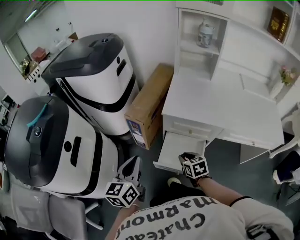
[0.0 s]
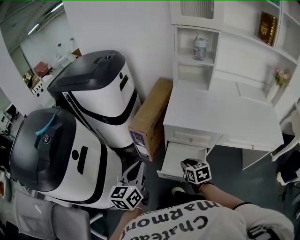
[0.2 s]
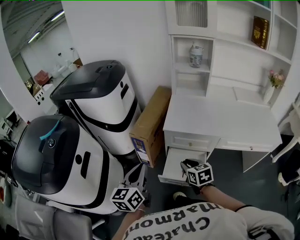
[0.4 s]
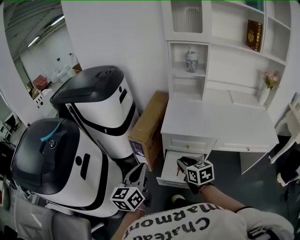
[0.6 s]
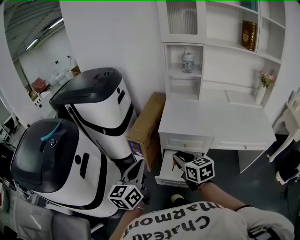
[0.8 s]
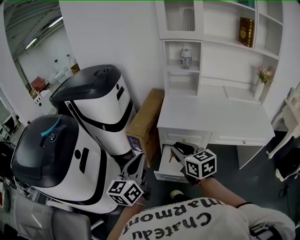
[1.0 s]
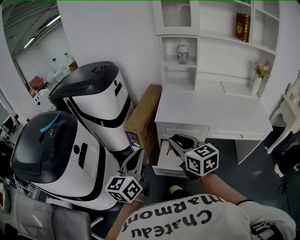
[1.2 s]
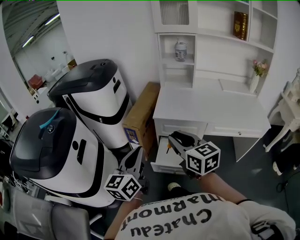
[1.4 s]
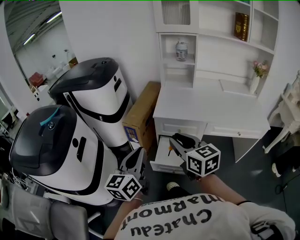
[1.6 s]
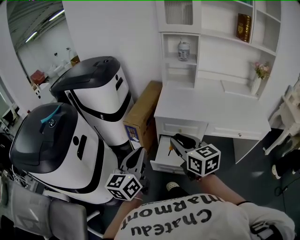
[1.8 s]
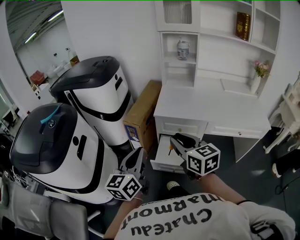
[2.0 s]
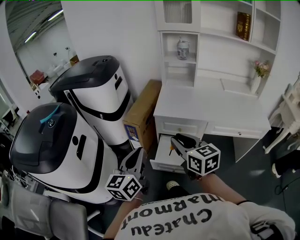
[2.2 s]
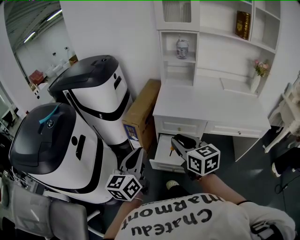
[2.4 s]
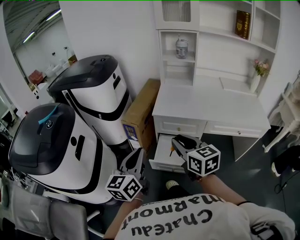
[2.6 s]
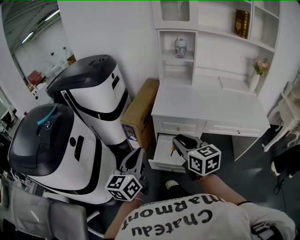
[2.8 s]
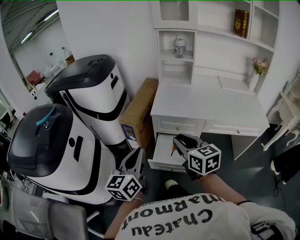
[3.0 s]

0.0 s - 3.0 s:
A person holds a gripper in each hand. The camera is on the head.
0.0 s - 1.6 s: The right gripper shifts roughly 30 cm upward and backward, and points its fingers some 40 degrees further upward. The left gripper is displaced backward and upward by approximately 15 cm.
1.6 s - 3.0 s: There are only small adjustments of the grippers.

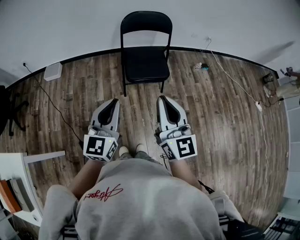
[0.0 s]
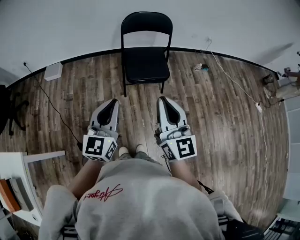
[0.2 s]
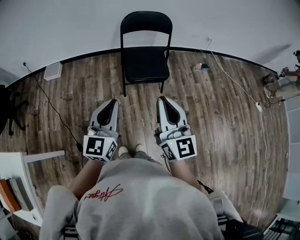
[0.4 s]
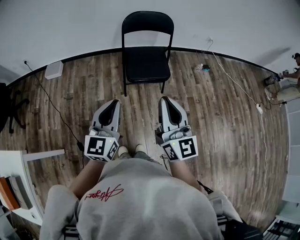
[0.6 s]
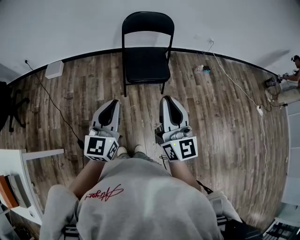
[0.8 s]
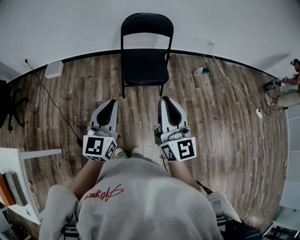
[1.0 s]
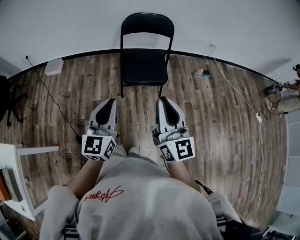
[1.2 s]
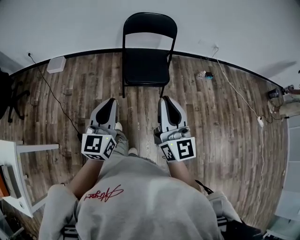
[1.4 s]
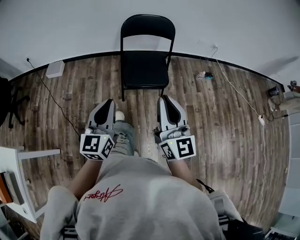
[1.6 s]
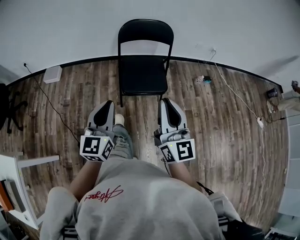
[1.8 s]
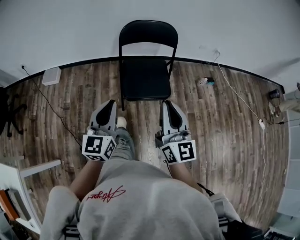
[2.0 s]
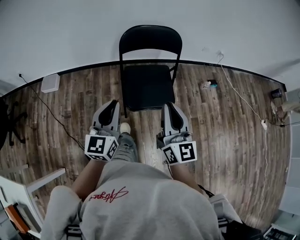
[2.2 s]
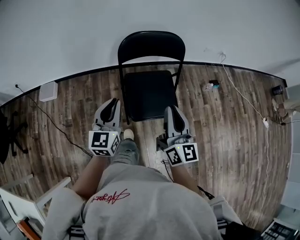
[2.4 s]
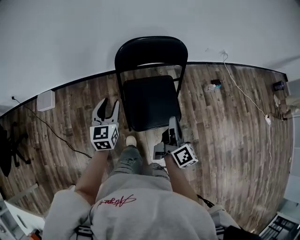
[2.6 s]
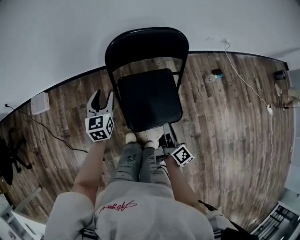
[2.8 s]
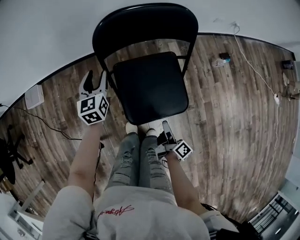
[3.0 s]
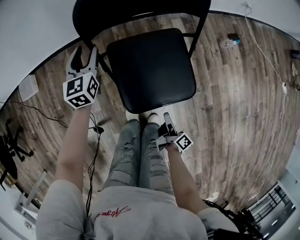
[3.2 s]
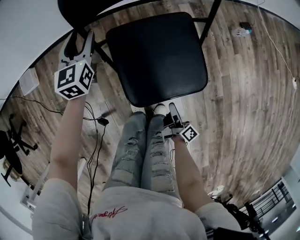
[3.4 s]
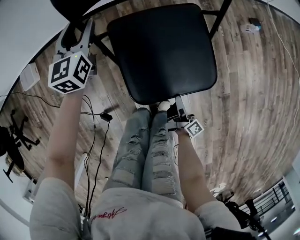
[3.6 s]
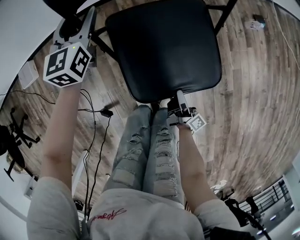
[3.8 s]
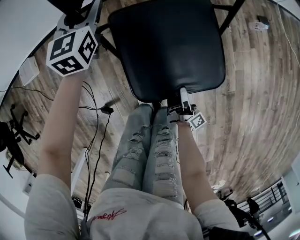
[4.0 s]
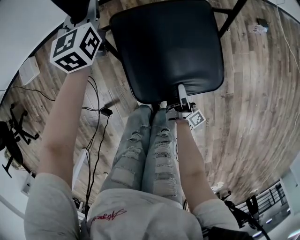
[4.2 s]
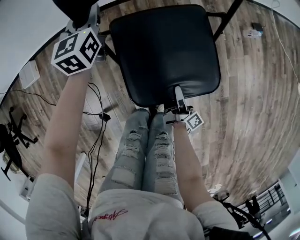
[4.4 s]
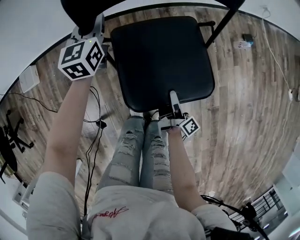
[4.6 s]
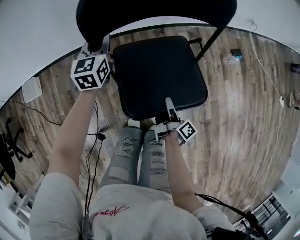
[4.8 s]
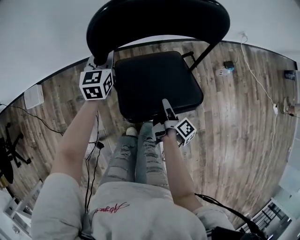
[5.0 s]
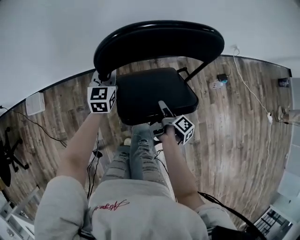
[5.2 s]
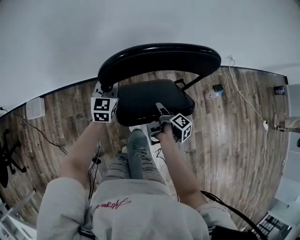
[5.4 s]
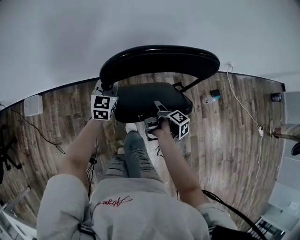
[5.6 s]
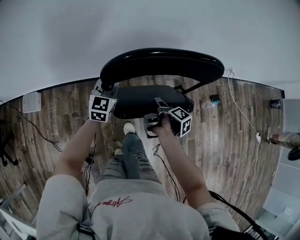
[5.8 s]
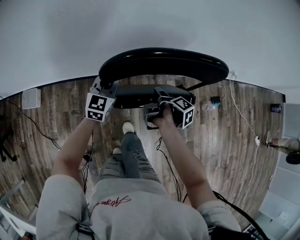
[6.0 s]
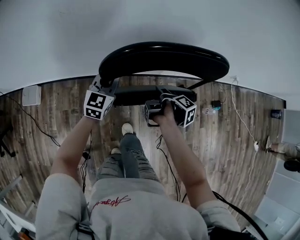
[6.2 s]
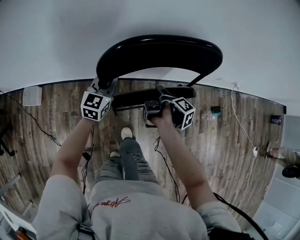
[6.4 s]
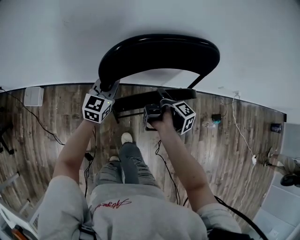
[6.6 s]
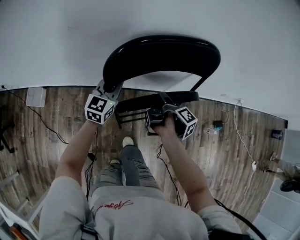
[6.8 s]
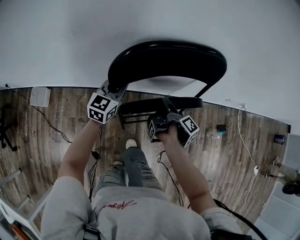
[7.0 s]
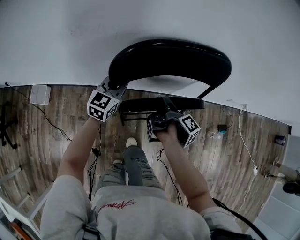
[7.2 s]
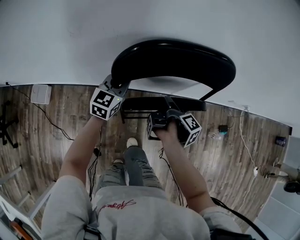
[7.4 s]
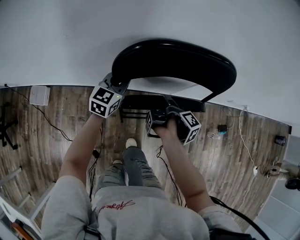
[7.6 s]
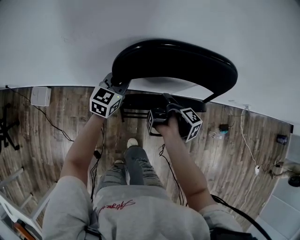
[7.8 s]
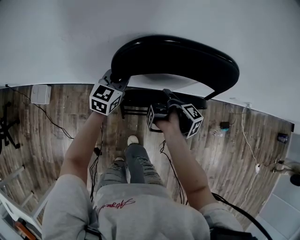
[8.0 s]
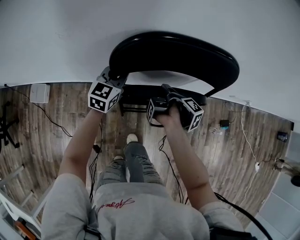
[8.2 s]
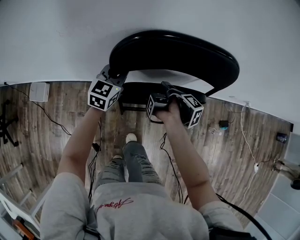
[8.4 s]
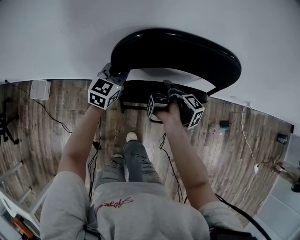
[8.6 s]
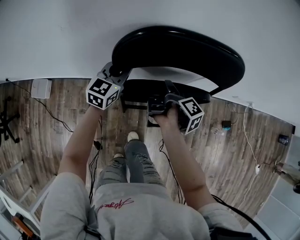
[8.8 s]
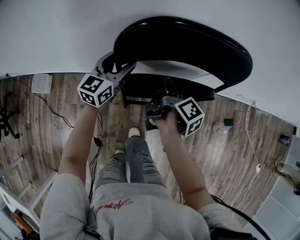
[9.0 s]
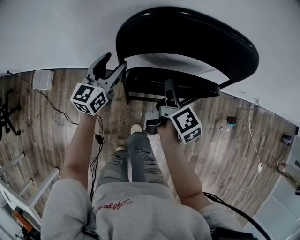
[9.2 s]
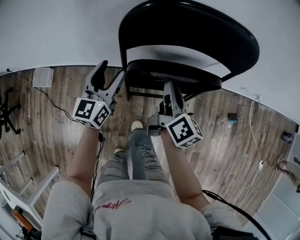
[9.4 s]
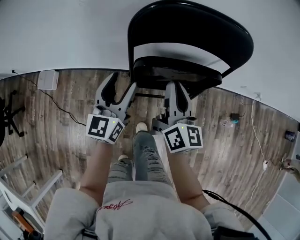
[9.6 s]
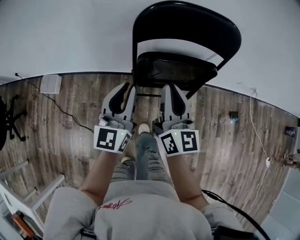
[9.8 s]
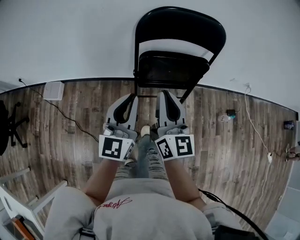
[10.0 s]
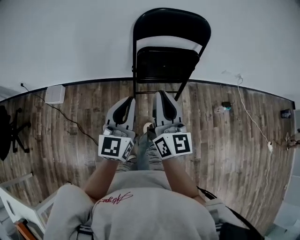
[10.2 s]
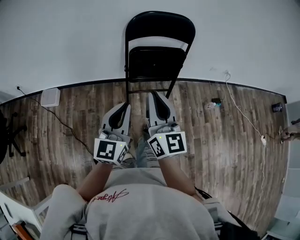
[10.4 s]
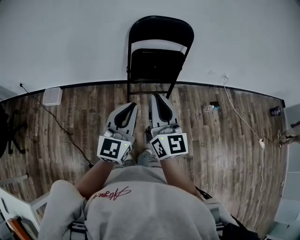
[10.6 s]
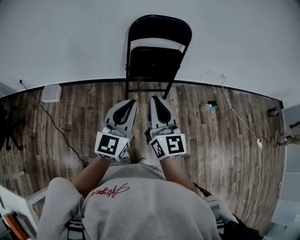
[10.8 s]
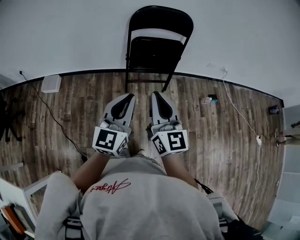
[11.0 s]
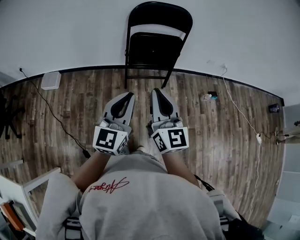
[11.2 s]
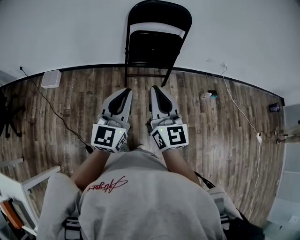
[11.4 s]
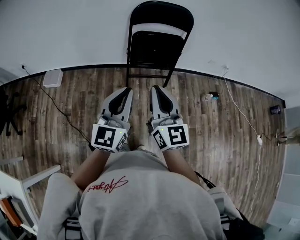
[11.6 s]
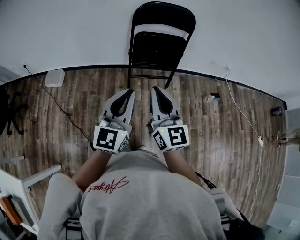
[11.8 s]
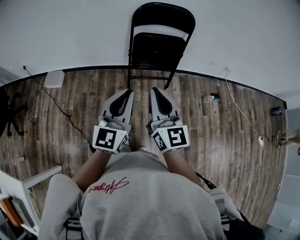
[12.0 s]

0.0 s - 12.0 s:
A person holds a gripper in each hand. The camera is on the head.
0.0 s - 1.6 s: The right gripper travels to the right and forward by some 10 cm, while the left gripper heads forward, covering approximately 5 cm.
1.6 s - 3.0 s: The right gripper is displaced downward and forward by approximately 50 cm, rolls clockwise, seen from behind, by roughly 70 degrees, and opens up; the left gripper travels forward and downward by some 60 cm, and opens.
3.0 s - 4.4 s: The left gripper heads forward and downward, covering about 15 cm, and closes up, while the right gripper heads downward, covering roughly 15 cm.
4.4 s - 6.0 s: The right gripper goes some 40 cm forward and upward, and tips its fingers downward by approximately 40 degrees. Meanwhile the left gripper goes roughly 15 cm upward and forward.
6.0 s - 7.6 s: The right gripper goes approximately 15 cm forward and to the left. Meanwhile the left gripper goes roughly 15 cm forward.
7.6 s - 9.0 s: The left gripper opens its fingers; the right gripper swivels approximately 20 degrees.
9.0 s - 10.4 s: Both grippers are carried backward, roughly 40 cm. The two grippers go some 25 cm upward. The left gripper closes its fingers, while the right gripper twists roughly 70 degrees counterclockwise, seen from behind, and closes.
10.4 s - 12.0 s: The two grippers go roughly 10 cm backward.

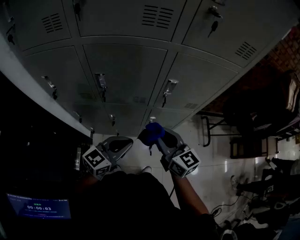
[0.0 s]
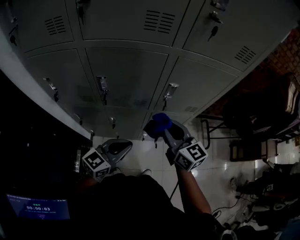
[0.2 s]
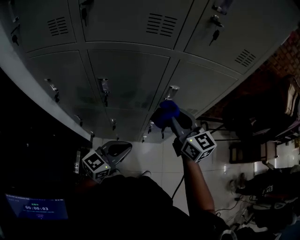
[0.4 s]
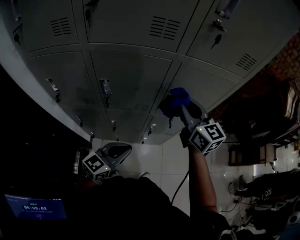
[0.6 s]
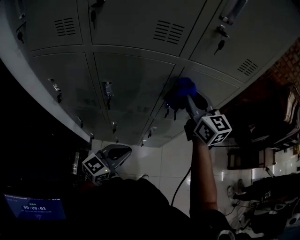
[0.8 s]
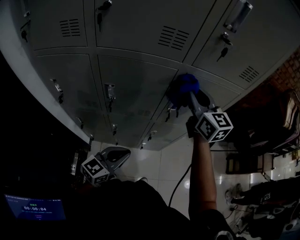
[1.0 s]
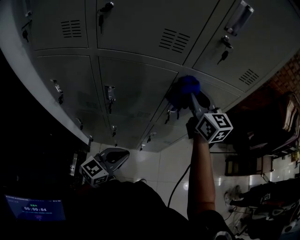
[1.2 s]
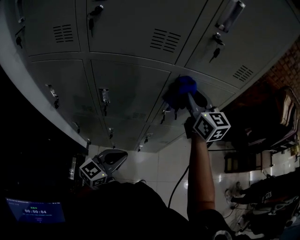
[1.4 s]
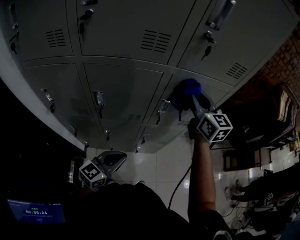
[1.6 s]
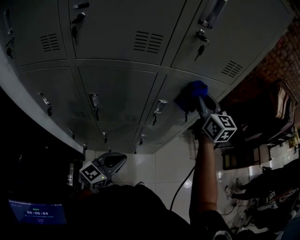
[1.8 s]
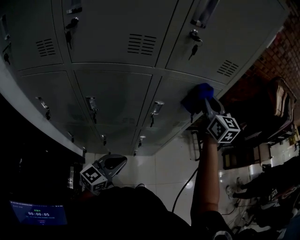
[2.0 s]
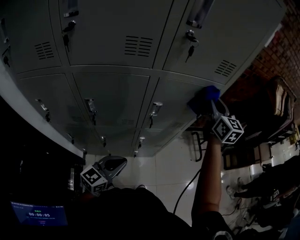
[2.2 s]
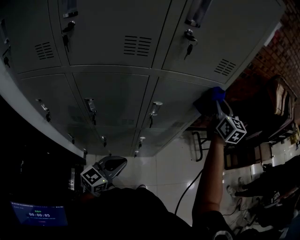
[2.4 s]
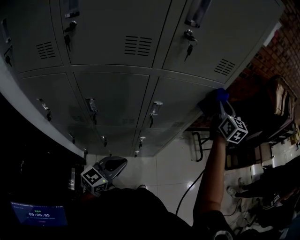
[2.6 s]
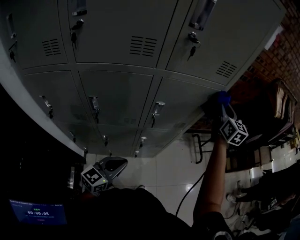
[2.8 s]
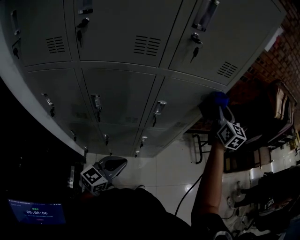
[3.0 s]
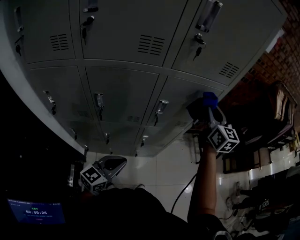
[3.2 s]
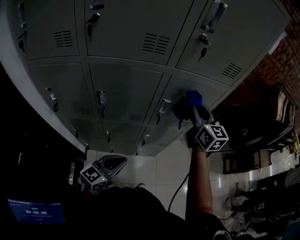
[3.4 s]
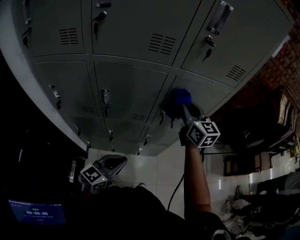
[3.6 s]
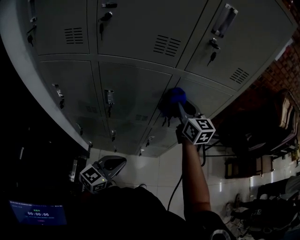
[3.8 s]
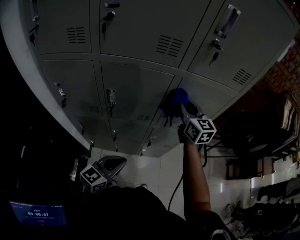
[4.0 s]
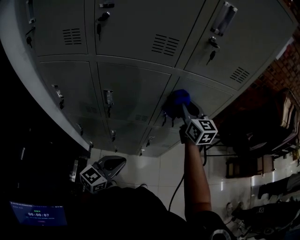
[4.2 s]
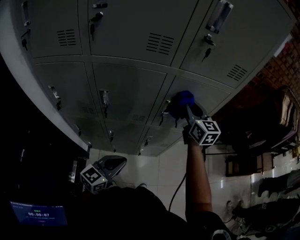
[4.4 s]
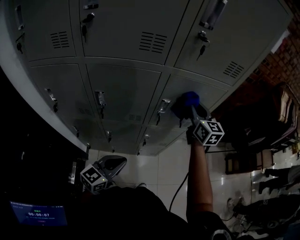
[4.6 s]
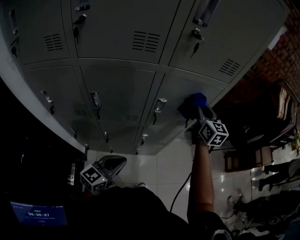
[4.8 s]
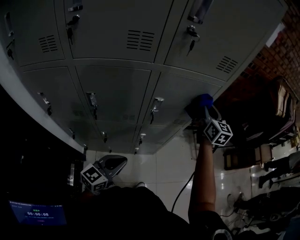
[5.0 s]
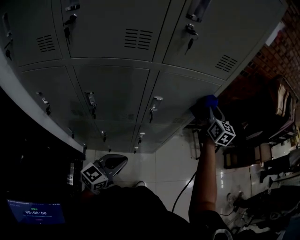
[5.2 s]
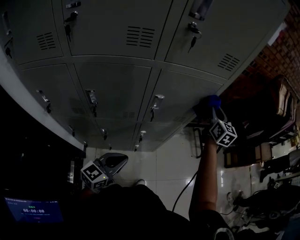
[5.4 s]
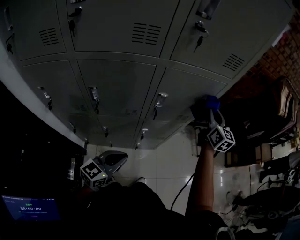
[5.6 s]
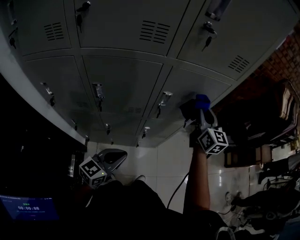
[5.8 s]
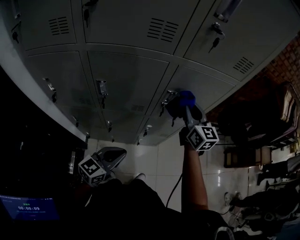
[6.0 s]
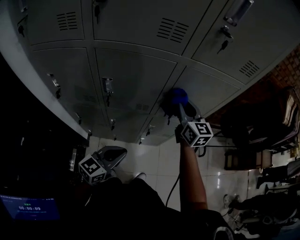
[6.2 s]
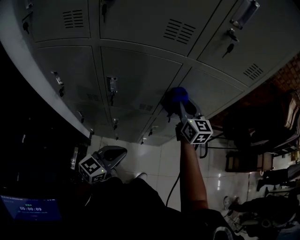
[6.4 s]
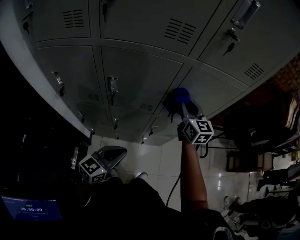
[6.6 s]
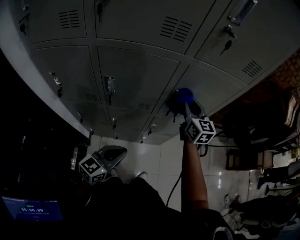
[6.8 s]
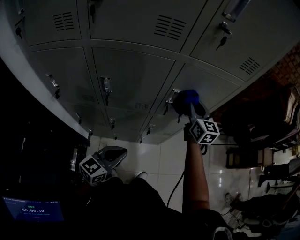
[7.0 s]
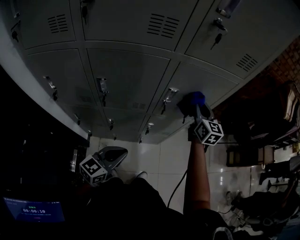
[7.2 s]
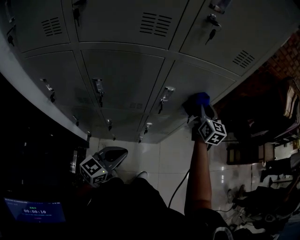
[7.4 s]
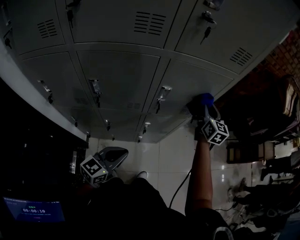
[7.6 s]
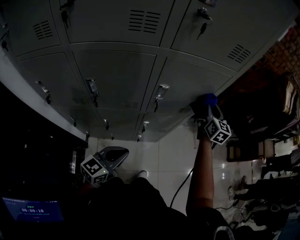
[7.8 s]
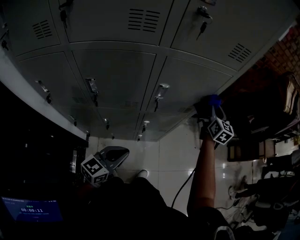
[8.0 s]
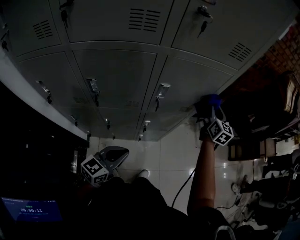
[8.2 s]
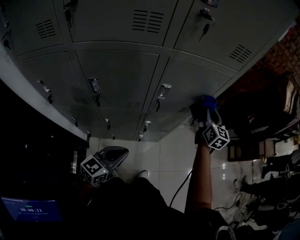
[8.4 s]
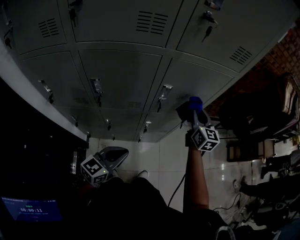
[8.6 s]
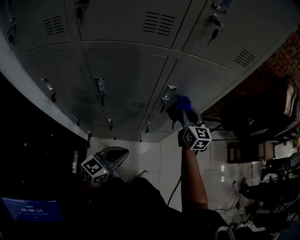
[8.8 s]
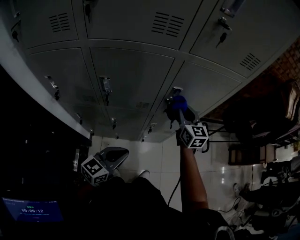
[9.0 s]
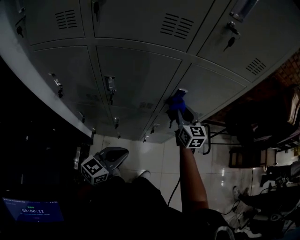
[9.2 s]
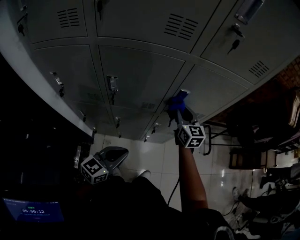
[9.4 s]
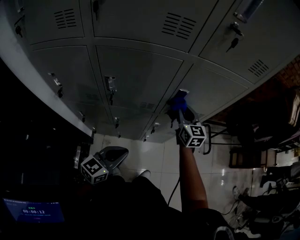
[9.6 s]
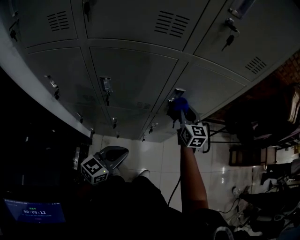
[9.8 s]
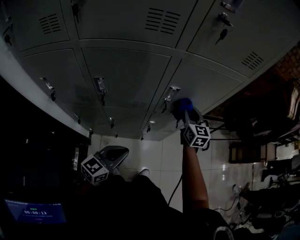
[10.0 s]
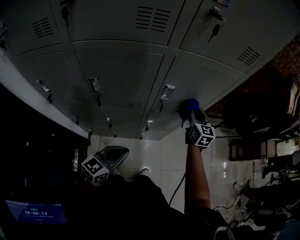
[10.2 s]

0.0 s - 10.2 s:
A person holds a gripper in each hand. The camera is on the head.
0.0 s - 1.4 s: The right gripper is displaced forward and upward by approximately 25 cm.
1.4 s - 3.0 s: The right gripper travels to the right by some 20 cm, and changes its angle by about 20 degrees.
3.0 s - 4.4 s: The right gripper is displaced to the left by approximately 15 cm.
4.4 s - 5.8 s: The right gripper is displaced to the right by roughly 10 cm.
5.8 s - 7.2 s: The right gripper is displaced downward by roughly 5 cm, and moves approximately 15 cm to the left and comes back.
7.2 s - 8.8 s: The right gripper moves approximately 15 cm to the right and comes back.
8.8 s - 10.2 s: The right gripper moves to the right and forward, some 10 cm.
